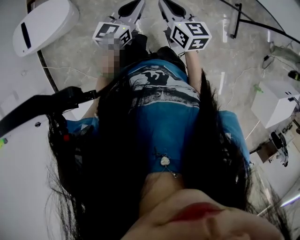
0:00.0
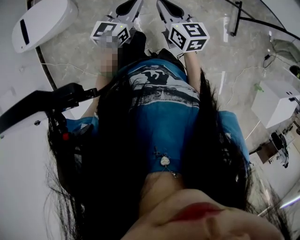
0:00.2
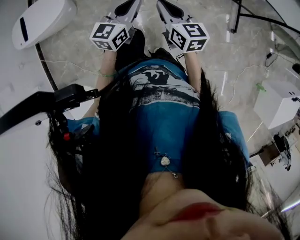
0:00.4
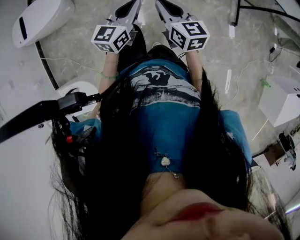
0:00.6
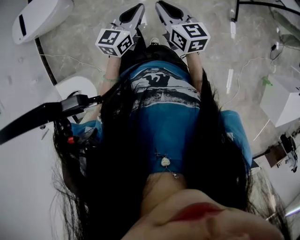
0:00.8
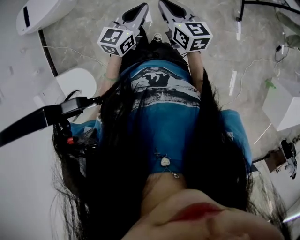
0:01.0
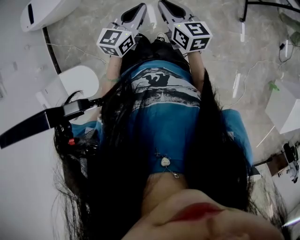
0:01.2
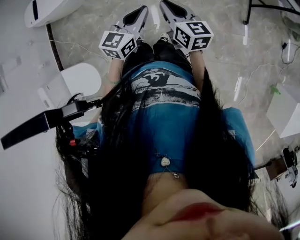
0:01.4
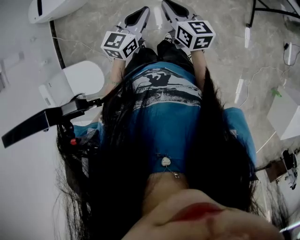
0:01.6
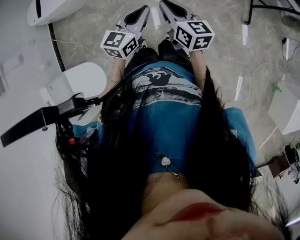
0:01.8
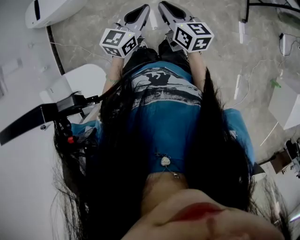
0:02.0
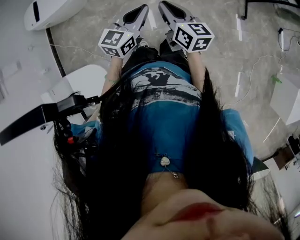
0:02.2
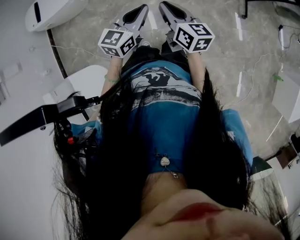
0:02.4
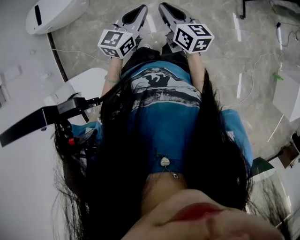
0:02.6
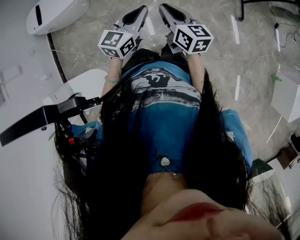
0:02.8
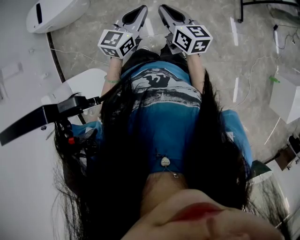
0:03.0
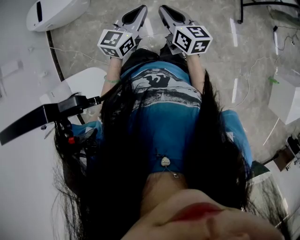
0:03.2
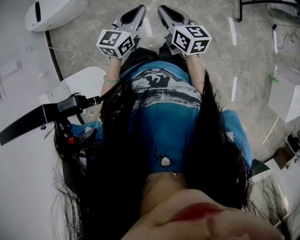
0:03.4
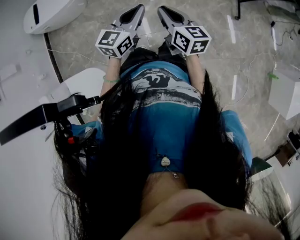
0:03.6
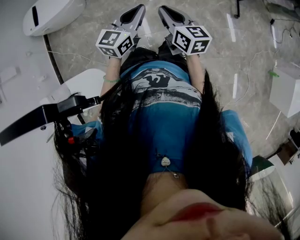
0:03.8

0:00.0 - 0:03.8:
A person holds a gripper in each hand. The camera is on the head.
0:00.0 - 0:01.2: The two grippers travel together, backward and to the right, about 40 cm.
0:01.2 - 0:02.6: The grippers both shift to the left and backward by approximately 20 cm.
0:02.6 - 0:03.8: Neither gripper changes place.

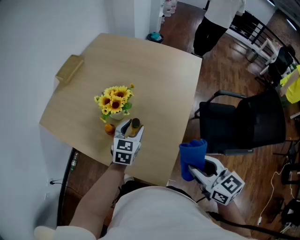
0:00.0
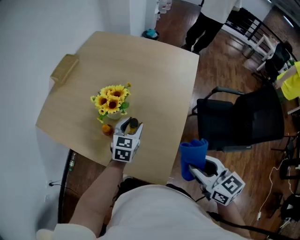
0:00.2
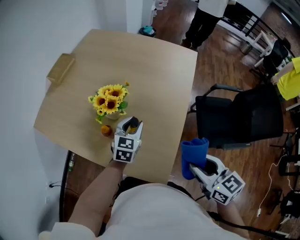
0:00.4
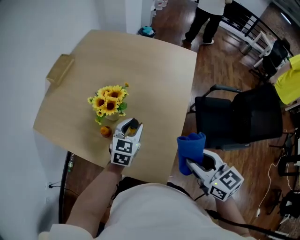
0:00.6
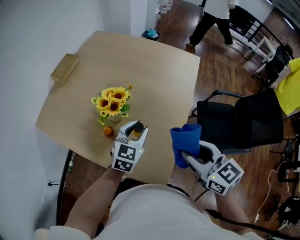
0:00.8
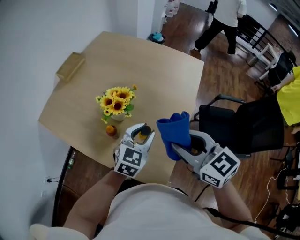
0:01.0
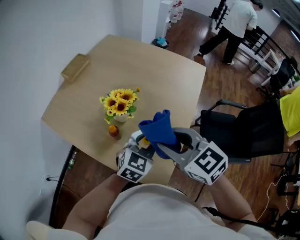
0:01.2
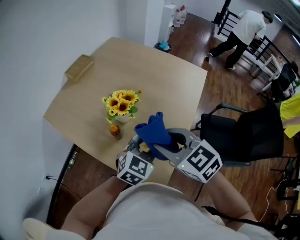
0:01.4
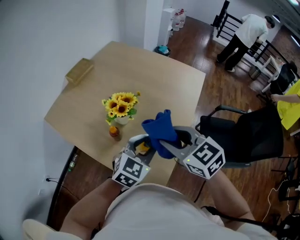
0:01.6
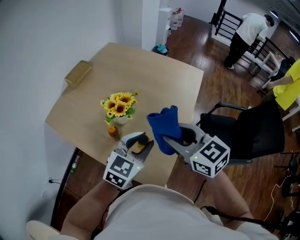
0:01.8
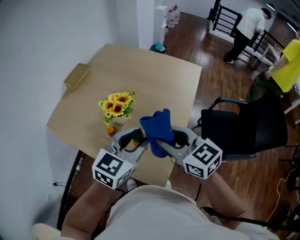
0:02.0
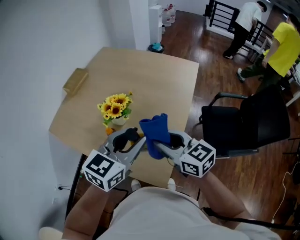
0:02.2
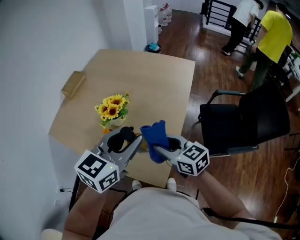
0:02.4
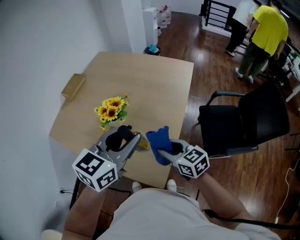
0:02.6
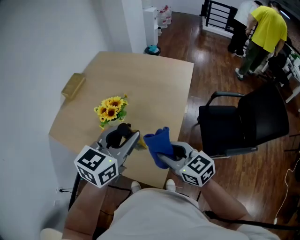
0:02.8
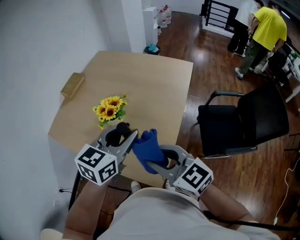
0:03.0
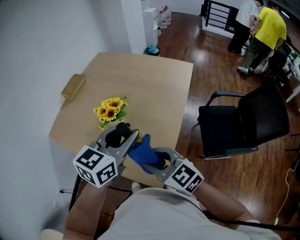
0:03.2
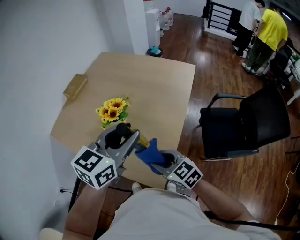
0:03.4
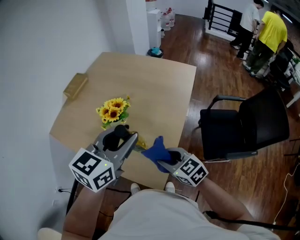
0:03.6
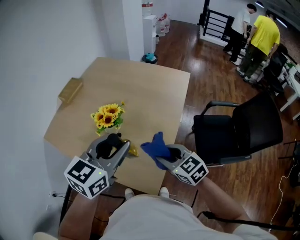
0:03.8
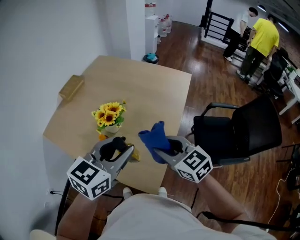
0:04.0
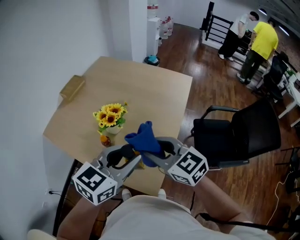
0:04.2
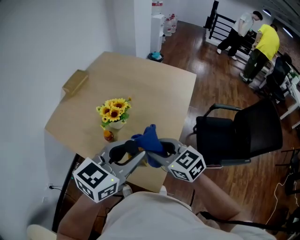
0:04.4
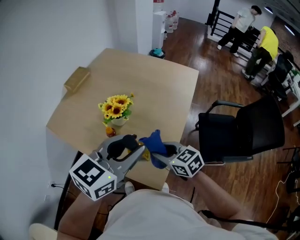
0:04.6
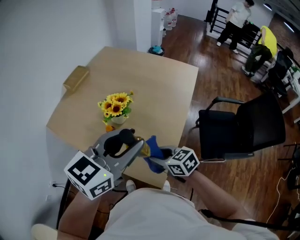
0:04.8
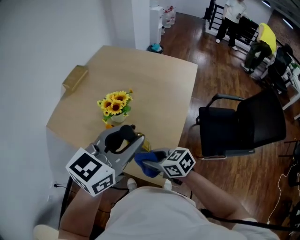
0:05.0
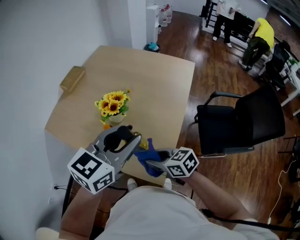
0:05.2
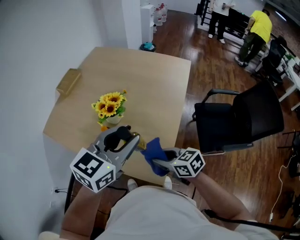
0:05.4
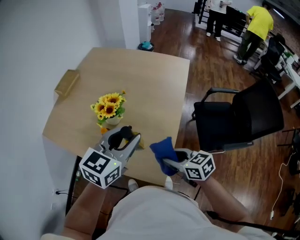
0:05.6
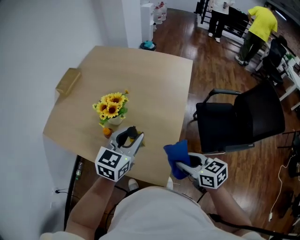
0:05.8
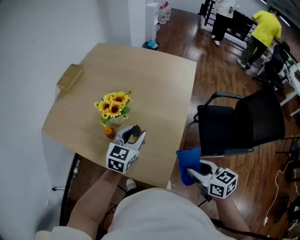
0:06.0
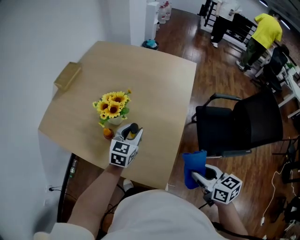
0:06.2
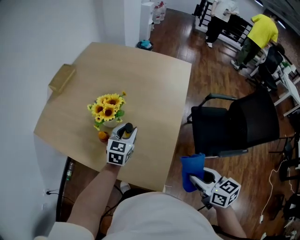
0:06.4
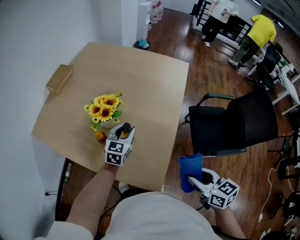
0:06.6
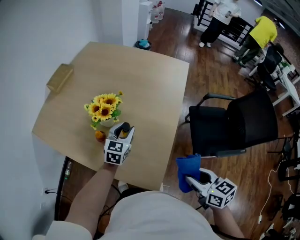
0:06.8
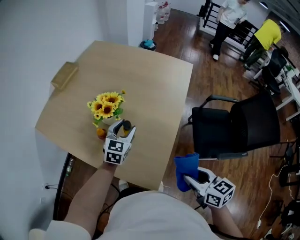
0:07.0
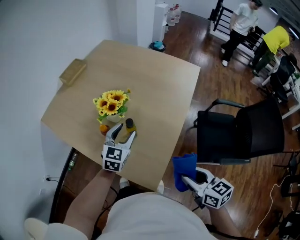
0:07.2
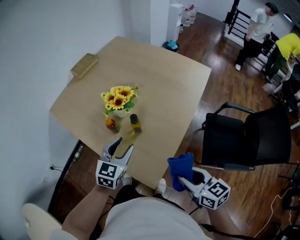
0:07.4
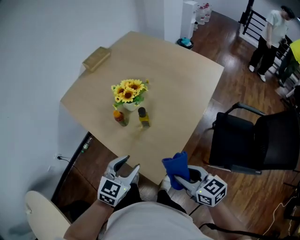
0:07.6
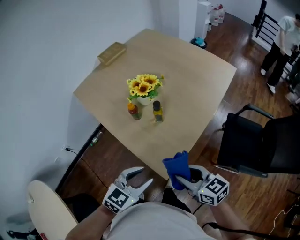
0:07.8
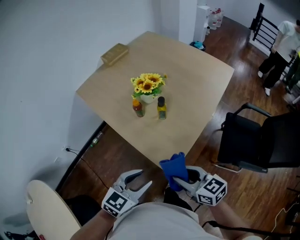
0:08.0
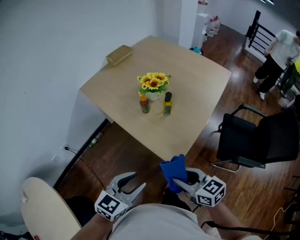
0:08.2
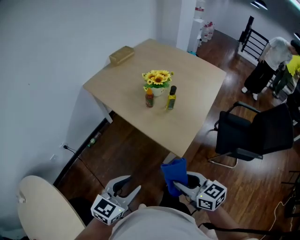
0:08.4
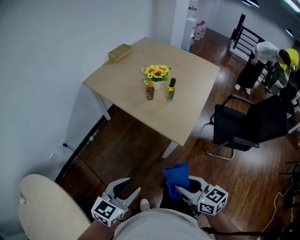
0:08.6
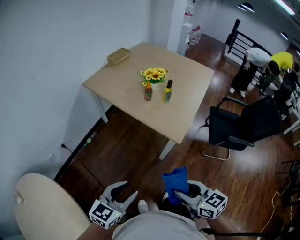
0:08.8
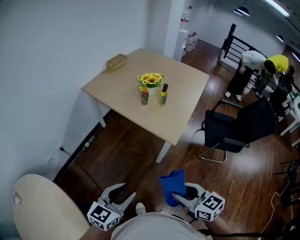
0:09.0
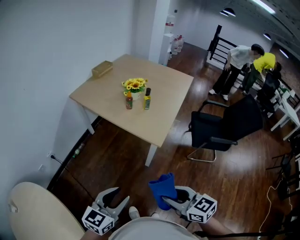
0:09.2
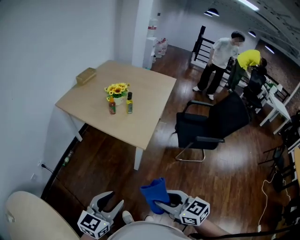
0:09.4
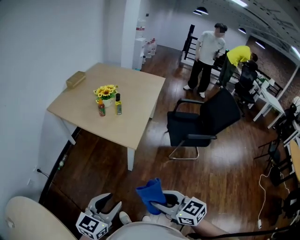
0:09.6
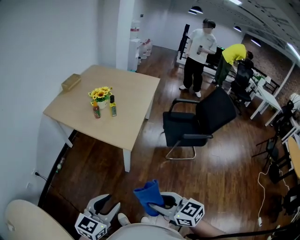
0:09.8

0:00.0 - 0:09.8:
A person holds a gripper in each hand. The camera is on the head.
0:00.0 - 0:01.4: The left gripper travels upward and backward by about 10 cm. The right gripper is displaced to the left and forward by approximately 15 cm, and turns by roughly 30 degrees.
0:01.4 - 0:02.8: The right gripper goes about 10 cm to the right, backward and downward, and swivels approximately 20 degrees; the left gripper travels upward by roughly 15 cm.
0:02.8 - 0:04.2: The right gripper swings up and down, some 15 cm each way, with 2 reversals.
0:04.2 - 0:05.6: The right gripper shifts roughly 15 cm downward, and swivels about 30 degrees; the left gripper moves roughly 5 cm.
0:05.6 - 0:07.0: The left gripper moves downward and forward, roughly 20 cm, while the right gripper goes roughly 10 cm to the right.
0:07.0 - 0:08.4: The left gripper is displaced backward and to the left by some 50 cm; the right gripper heads to the left and backward, covering approximately 30 cm, and rotates some 30 degrees.
0:08.4 - 0:09.8: The grippers both shift backward by roughly 20 cm.

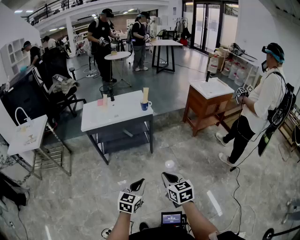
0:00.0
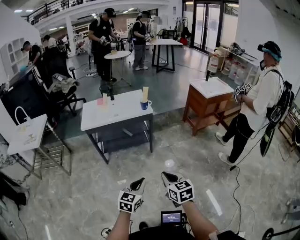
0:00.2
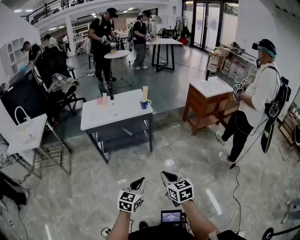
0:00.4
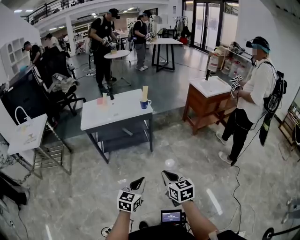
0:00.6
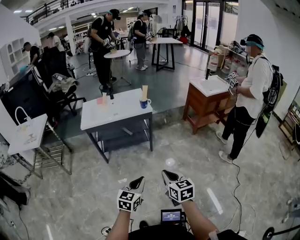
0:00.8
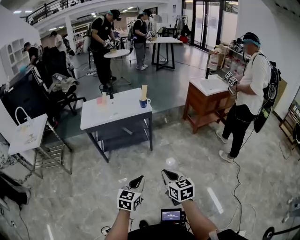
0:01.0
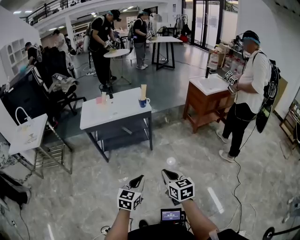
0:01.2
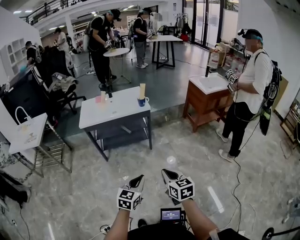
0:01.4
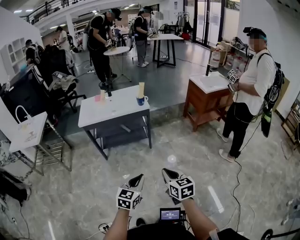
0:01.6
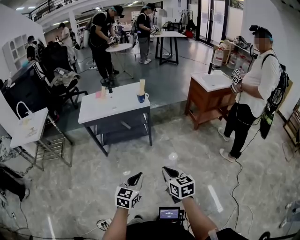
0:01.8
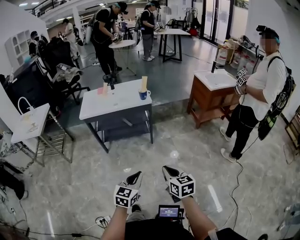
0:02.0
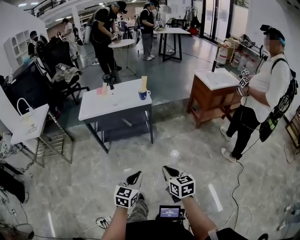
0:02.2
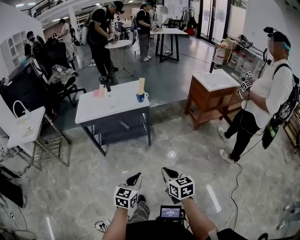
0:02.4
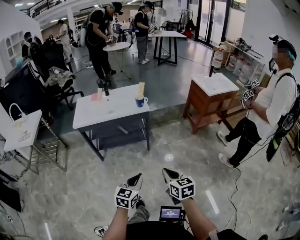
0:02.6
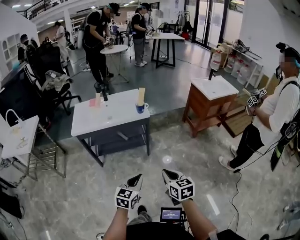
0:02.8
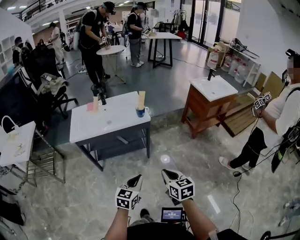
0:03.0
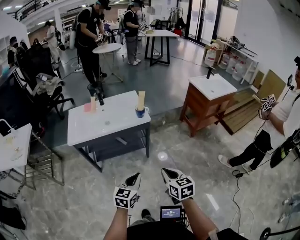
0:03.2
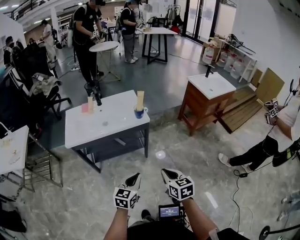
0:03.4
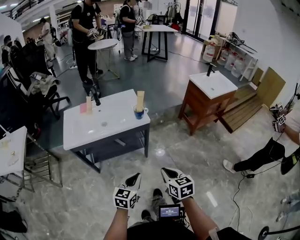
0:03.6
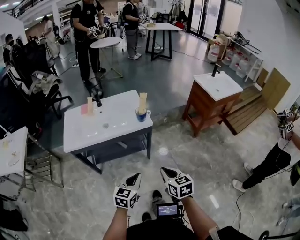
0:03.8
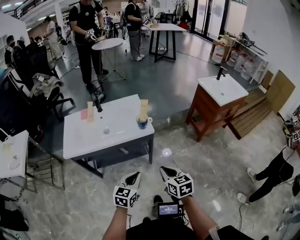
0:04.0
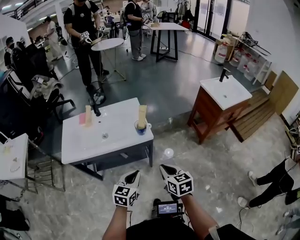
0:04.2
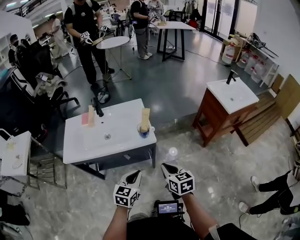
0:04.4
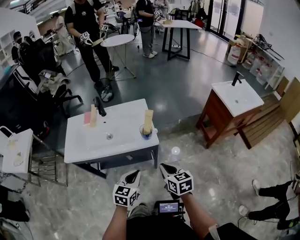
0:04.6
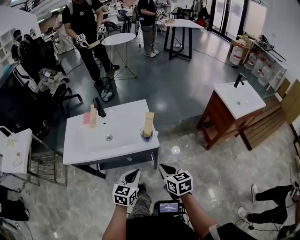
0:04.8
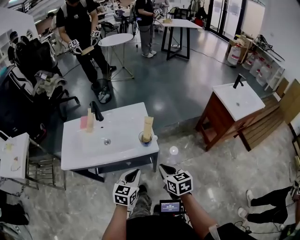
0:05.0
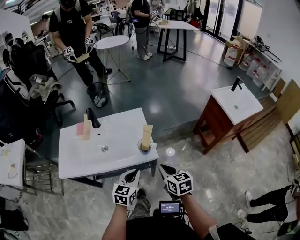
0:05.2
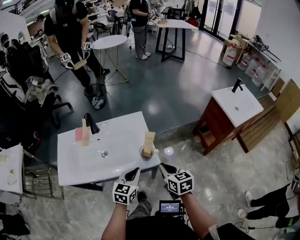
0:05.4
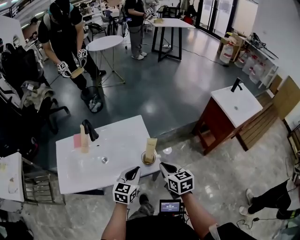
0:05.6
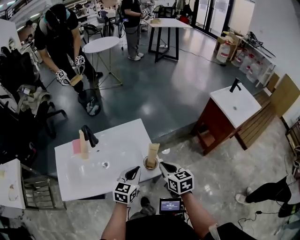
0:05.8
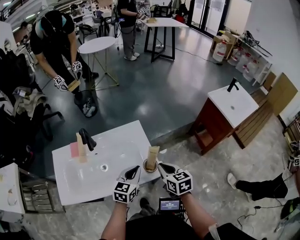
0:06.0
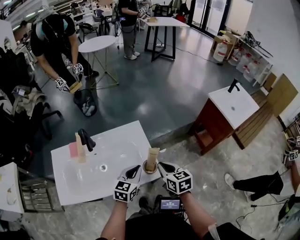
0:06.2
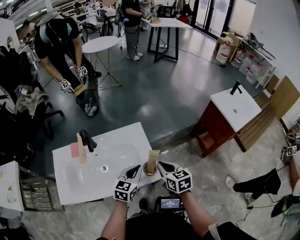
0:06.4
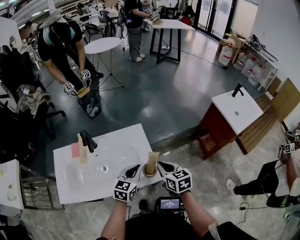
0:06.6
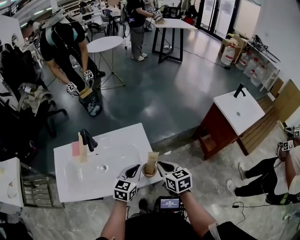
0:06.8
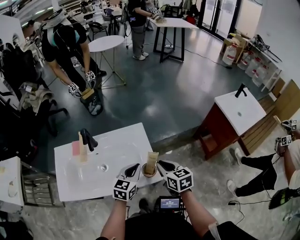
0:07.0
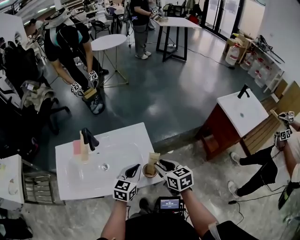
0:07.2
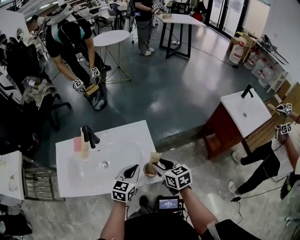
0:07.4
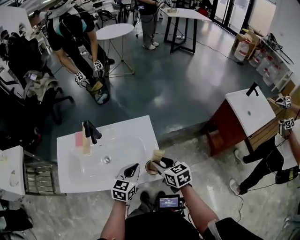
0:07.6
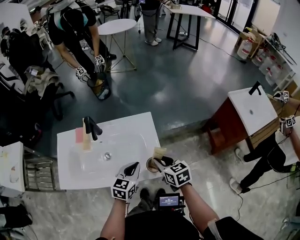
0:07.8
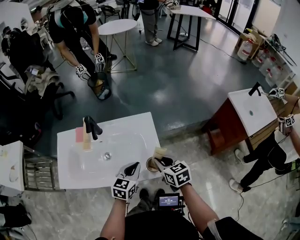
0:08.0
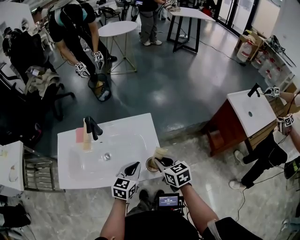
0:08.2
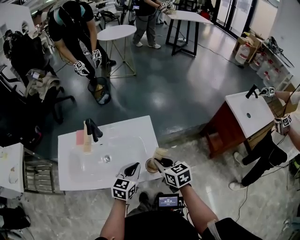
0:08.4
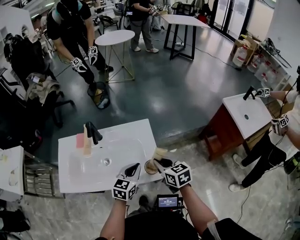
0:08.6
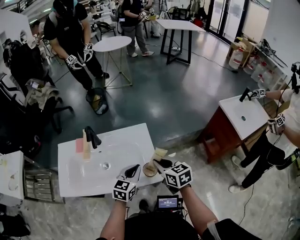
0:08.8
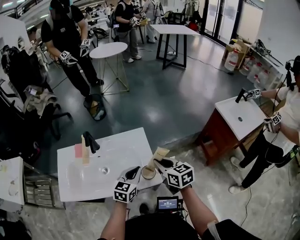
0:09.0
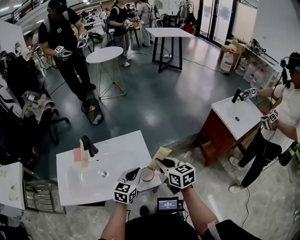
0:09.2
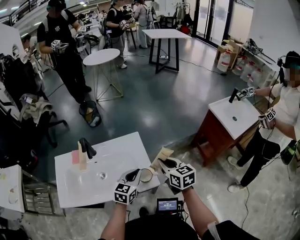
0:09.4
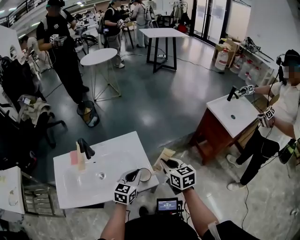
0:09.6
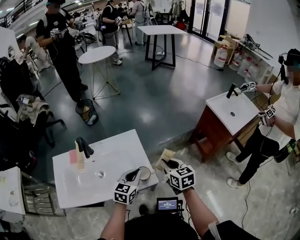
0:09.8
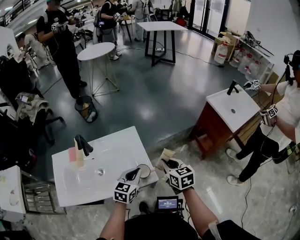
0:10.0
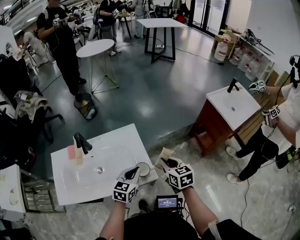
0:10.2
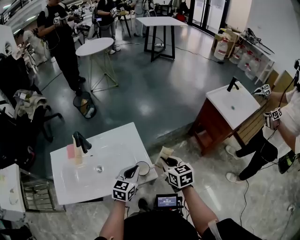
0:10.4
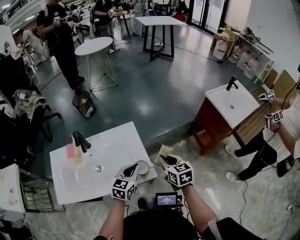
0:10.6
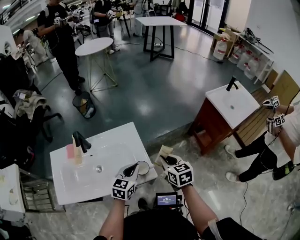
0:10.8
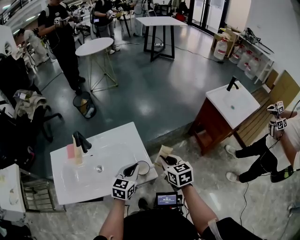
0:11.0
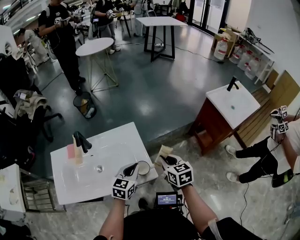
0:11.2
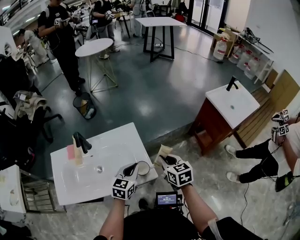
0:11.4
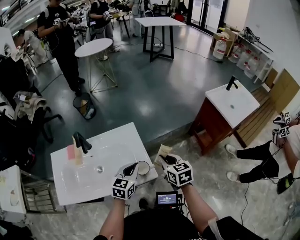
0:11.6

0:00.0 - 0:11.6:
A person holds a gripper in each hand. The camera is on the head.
0:00.0 - 0:01.4: The grippers move only a little.
0:01.4 - 0:02.8: Both grippers move forward, approximately 15 cm.
0:02.8 - 0:04.4: Both grippers move forward, about 35 cm.
0:04.4 - 0:05.8: The grippers both shift forward by about 25 cm.
0:05.8 - 0:07.2: The two grippers go some 5 cm forward. The right gripper opens its fingers.
0:07.2 - 0:08.8: The right gripper closes.
0:08.8 - 0:10.2: The right gripper moves to the right, some 10 cm.
0:10.2 - 0:11.6: The grippers make only small movements.
